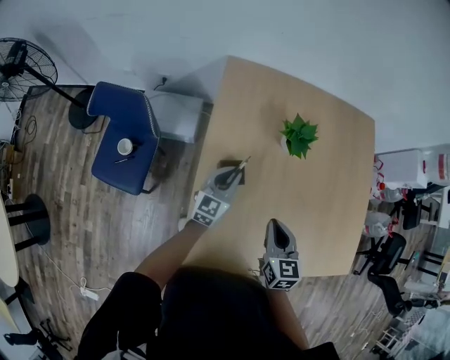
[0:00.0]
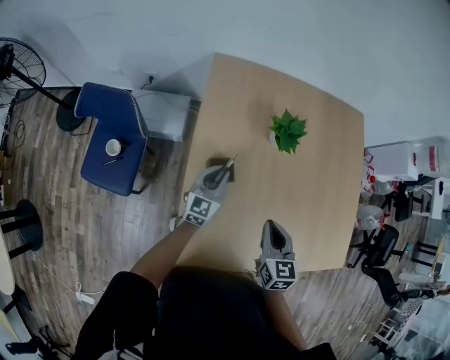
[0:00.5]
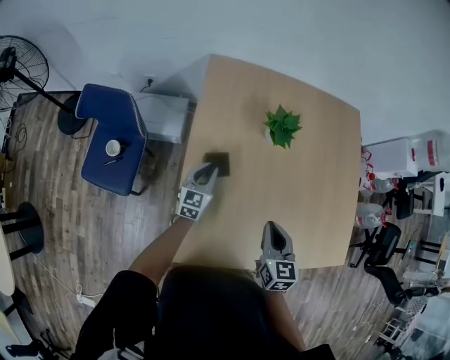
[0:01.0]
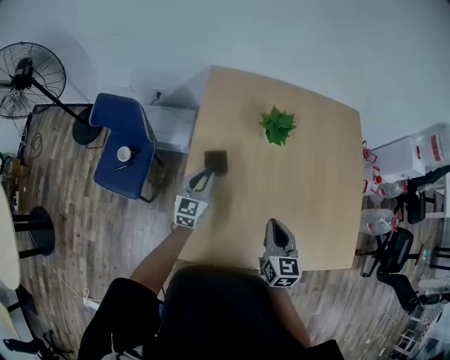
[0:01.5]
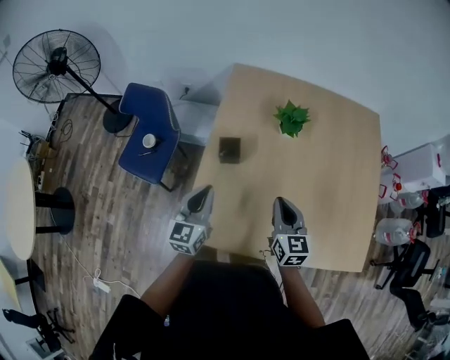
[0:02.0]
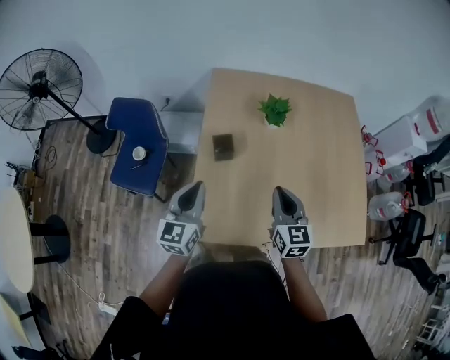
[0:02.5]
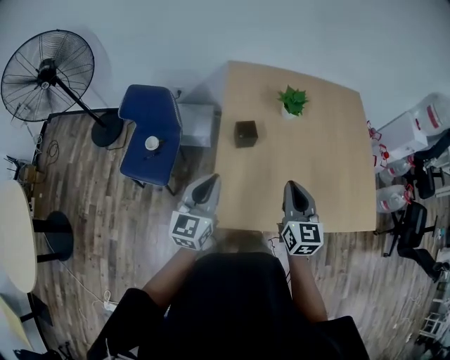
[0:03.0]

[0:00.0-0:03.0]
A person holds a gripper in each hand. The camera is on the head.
0:00.0 to 0:01.5: The right gripper shifts roughly 10 cm to the right and backward. Meanwhile the left gripper shifts approximately 10 cm backward.
0:01.5 to 0:03.0: The right gripper heads backward, to the left and upward, covering about 20 cm, while the left gripper is displaced backward and upward by some 30 cm.

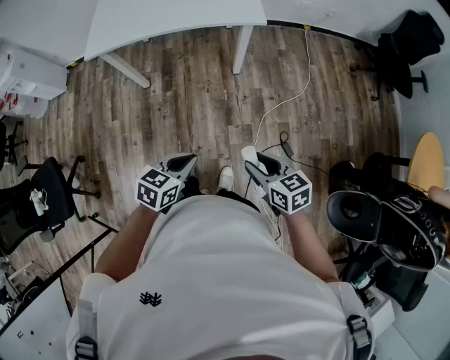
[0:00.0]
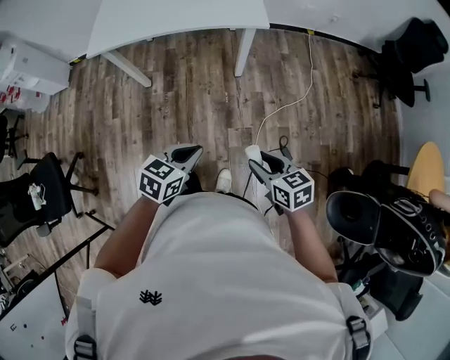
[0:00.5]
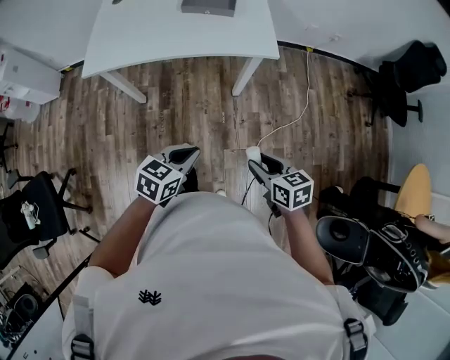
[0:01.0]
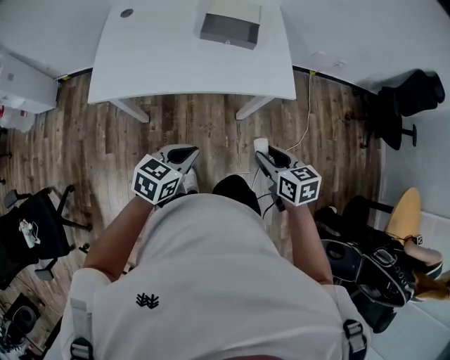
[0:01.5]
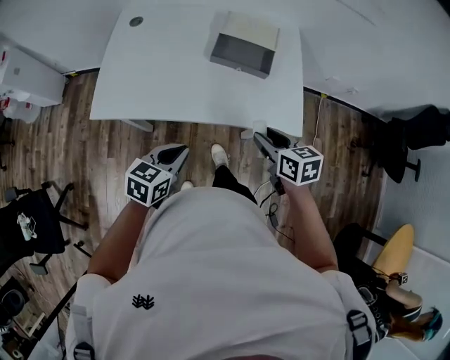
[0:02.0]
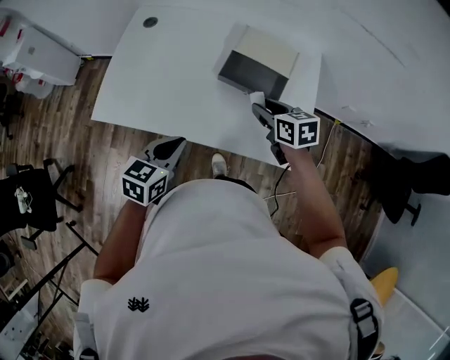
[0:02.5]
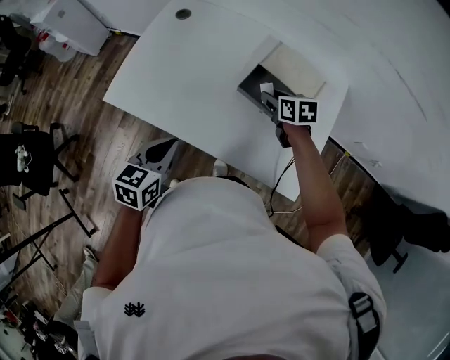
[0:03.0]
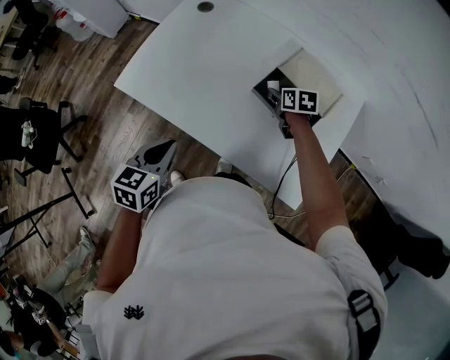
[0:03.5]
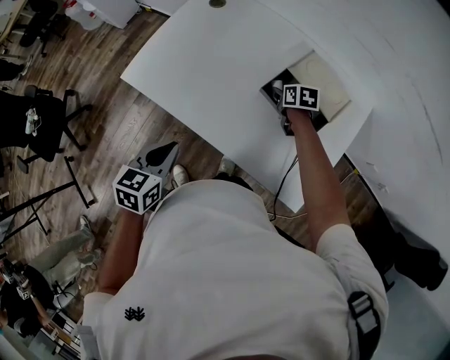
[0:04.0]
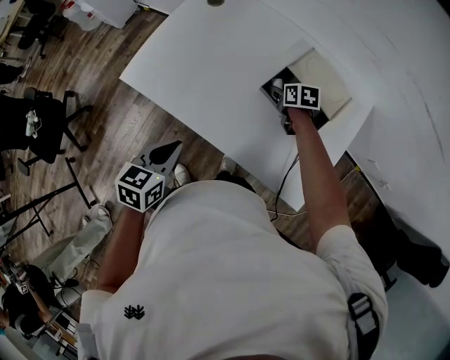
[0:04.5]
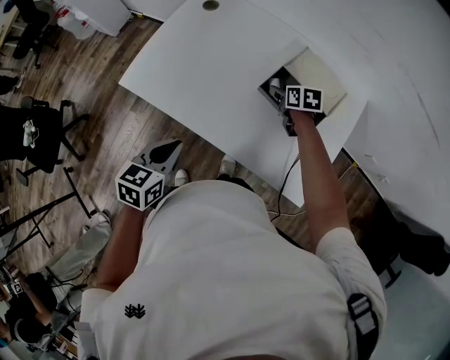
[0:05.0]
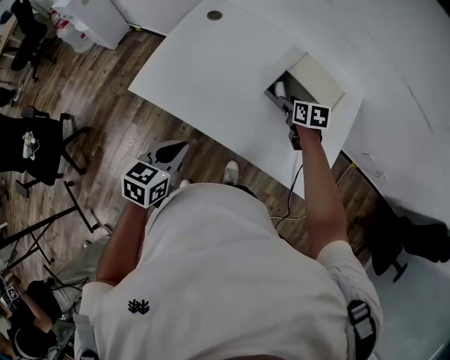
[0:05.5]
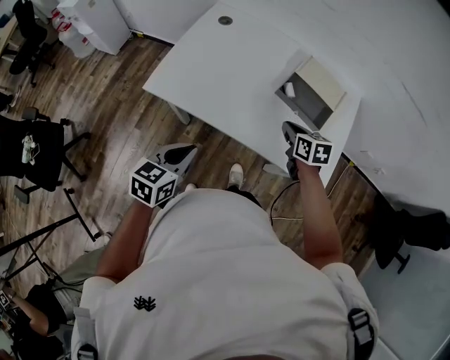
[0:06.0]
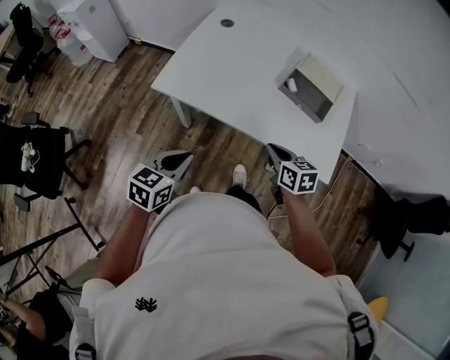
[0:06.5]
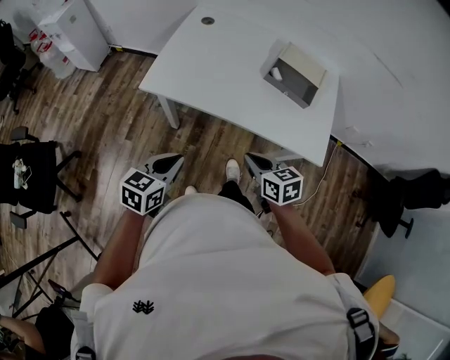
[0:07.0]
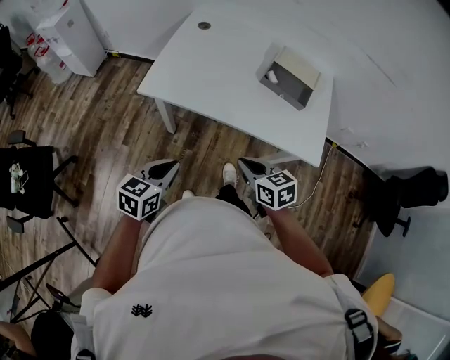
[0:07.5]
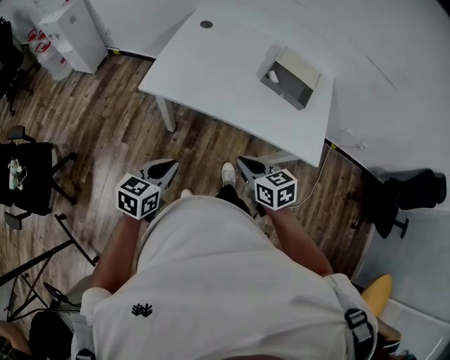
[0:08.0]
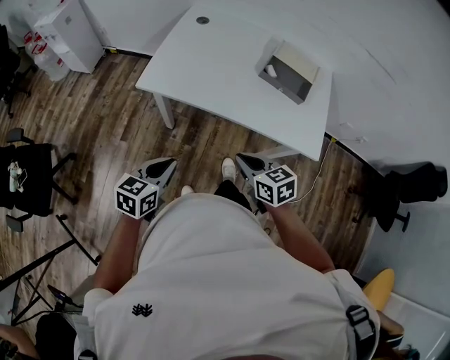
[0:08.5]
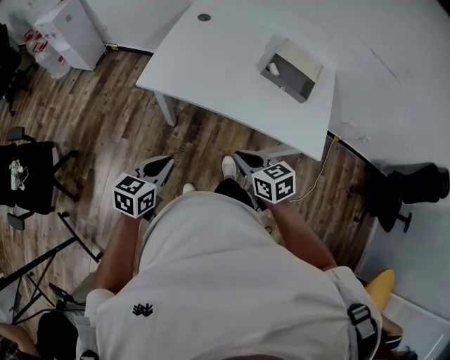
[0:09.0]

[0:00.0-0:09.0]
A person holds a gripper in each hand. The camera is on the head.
0:00.0 to 0:02.0: The pair of grippers is taken forward, roughly 50 cm.
0:02.0 to 0:04.5: The right gripper shifts by some 40 cm, and changes its angle by some 30 degrees. The left gripper changes place by roughly 10 cm, and rotates roughly 40 degrees.
0:04.5 to 0:07.0: The right gripper is displaced backward, to the left and upward by roughly 50 cm, and closes up. The left gripper shifts some 20 cm to the left and backward, and swivels about 20 degrees.
0:07.0 to 0:09.0: The grippers move only a little.

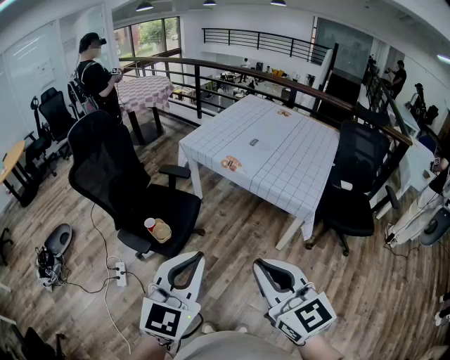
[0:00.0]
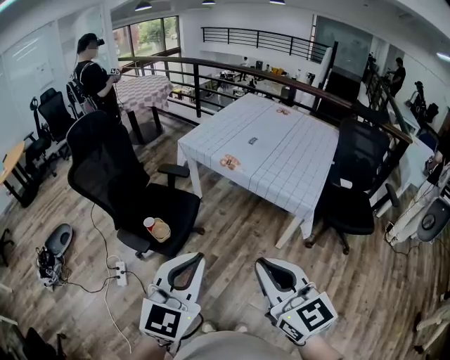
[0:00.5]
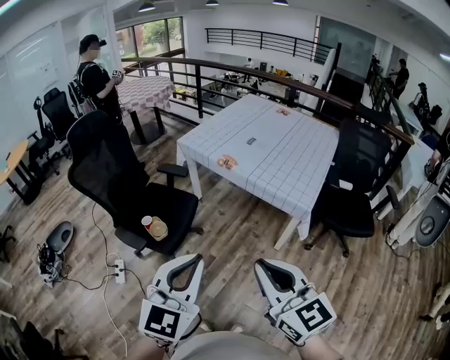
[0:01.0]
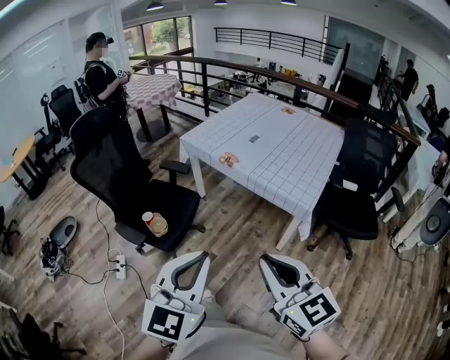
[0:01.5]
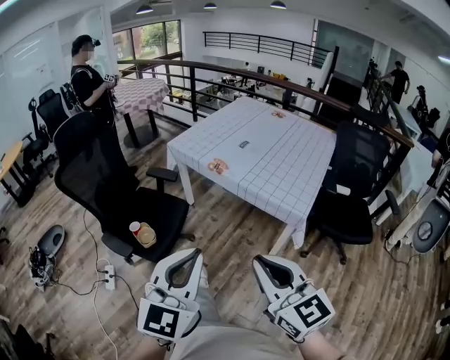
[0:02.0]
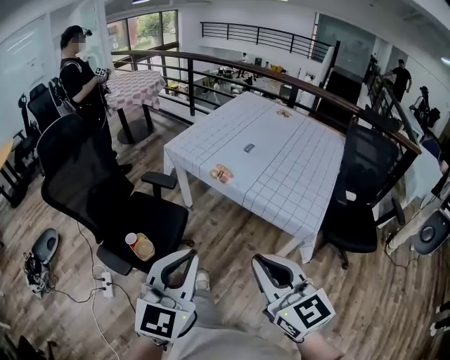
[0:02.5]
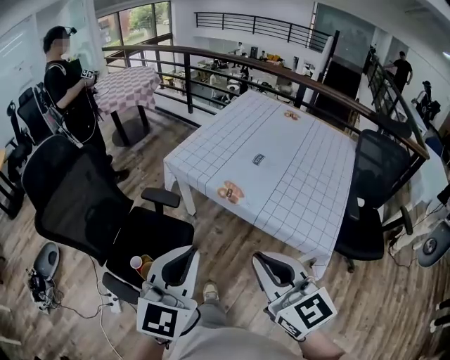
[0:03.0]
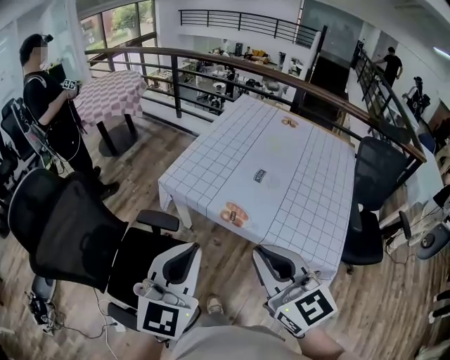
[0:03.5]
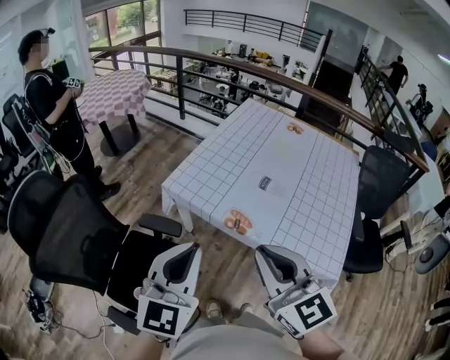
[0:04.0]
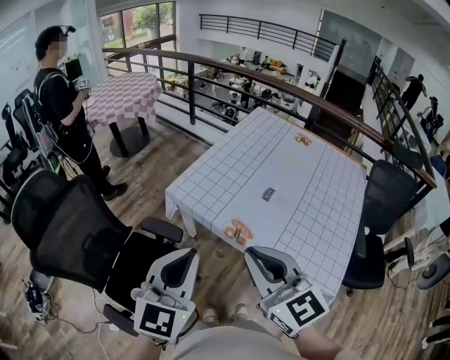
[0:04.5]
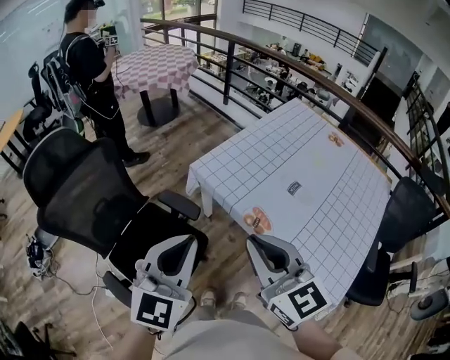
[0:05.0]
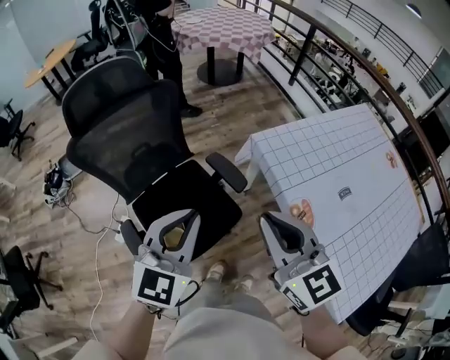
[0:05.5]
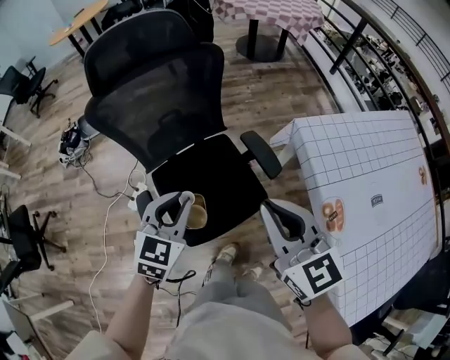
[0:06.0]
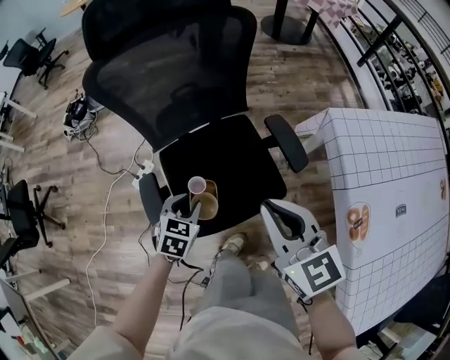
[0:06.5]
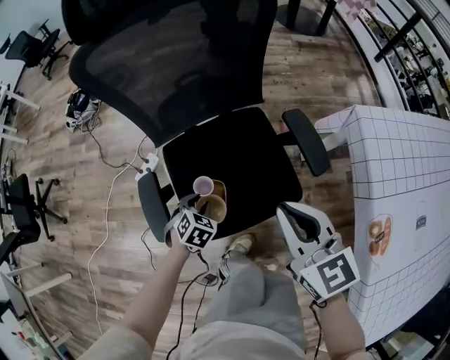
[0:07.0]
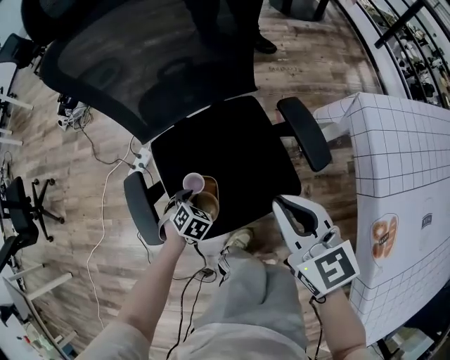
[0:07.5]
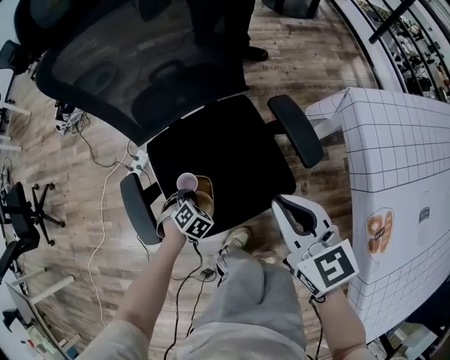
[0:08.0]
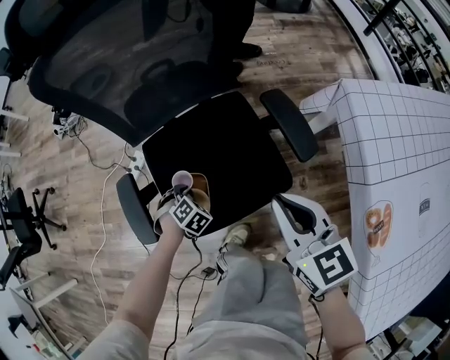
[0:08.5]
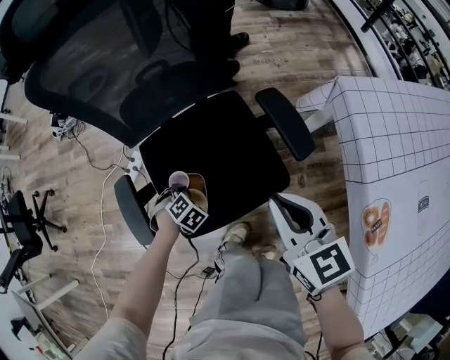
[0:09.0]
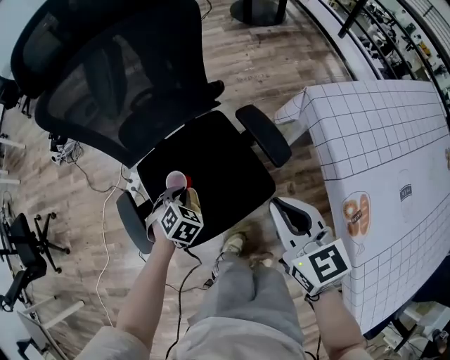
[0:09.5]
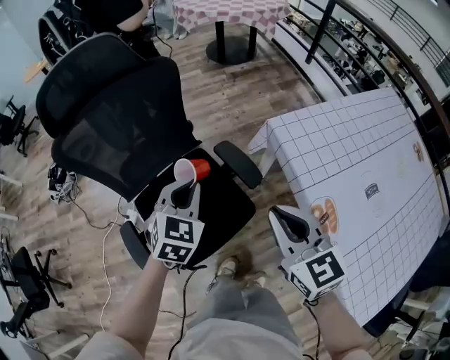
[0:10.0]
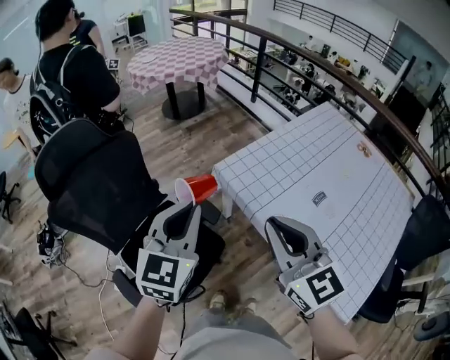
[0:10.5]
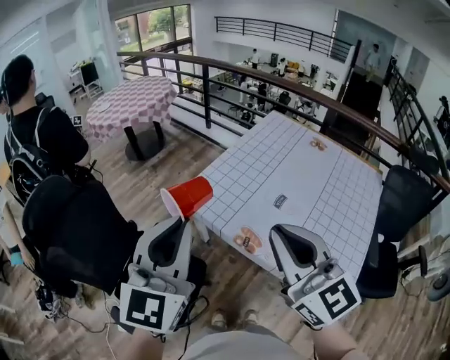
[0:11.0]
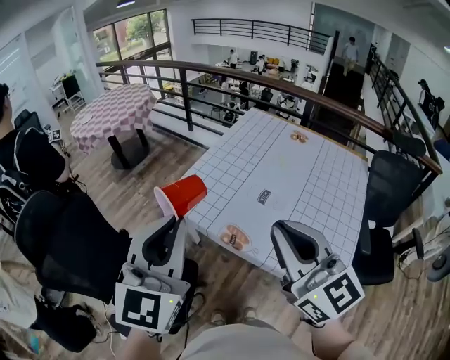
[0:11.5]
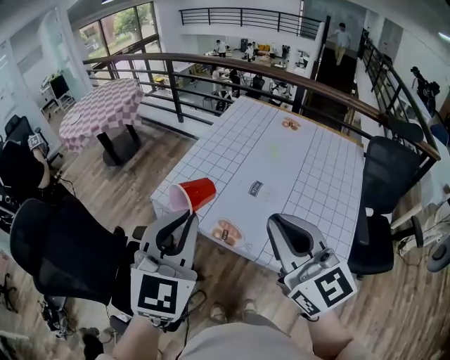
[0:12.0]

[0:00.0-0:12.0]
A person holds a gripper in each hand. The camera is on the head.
0:00.0 to 0:02.0: The left gripper is displaced to the right by roughly 10 cm. The right gripper moves to the right and downward, roughly 10 cm.
0:02.0 to 0:04.0: Both grippers are carried forward, about 50 cm.
0:04.0 to 0:06.0: The right gripper shifts by roughly 30 cm, and changes its angle by roughly 50 degrees; the left gripper changes place by approximately 40 cm, and turns by about 50 degrees.
0:06.0 to 0:08.0: The right gripper shifts about 25 cm downward. The left gripper moves downward, about 40 cm, and points its fingers approximately 40 degrees further downward.
0:08.0 to 0:10.0: The right gripper travels upward by roughly 15 cm. Meanwhile the left gripper goes approximately 35 cm upward, and angles its fingers upward, by about 30 degrees.
0:10.0 to 0:12.0: The right gripper shifts by approximately 25 cm, and swivels some 50 degrees. Meanwhile the left gripper ends up roughly 30 cm from where it was, and angles its fingers upward, by roughly 30 degrees.

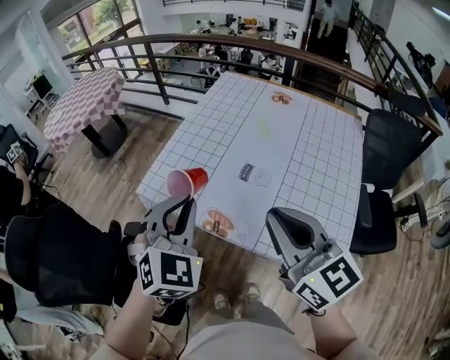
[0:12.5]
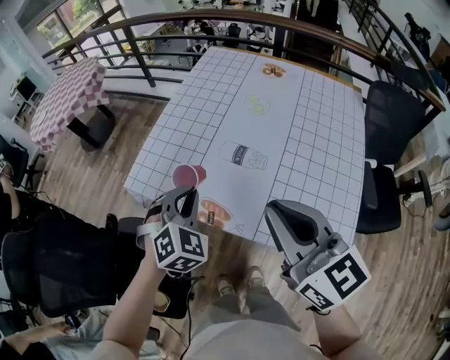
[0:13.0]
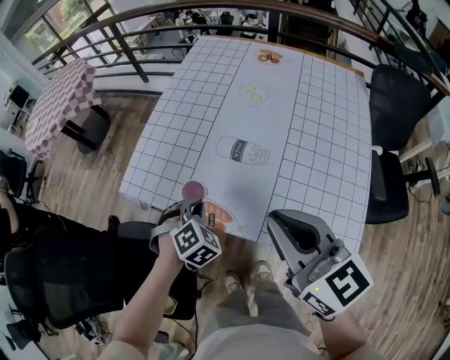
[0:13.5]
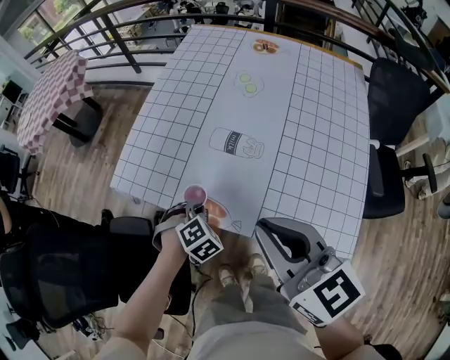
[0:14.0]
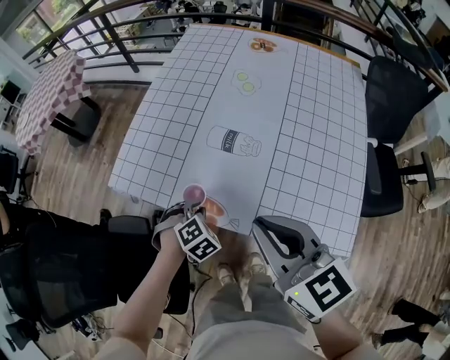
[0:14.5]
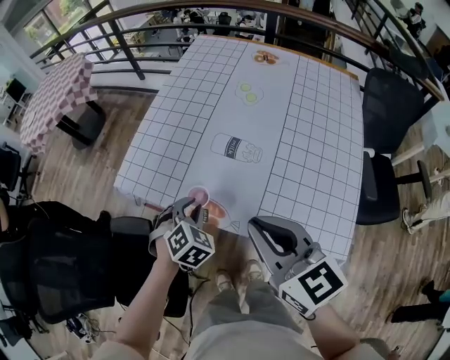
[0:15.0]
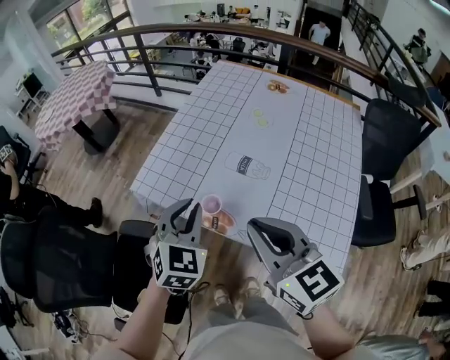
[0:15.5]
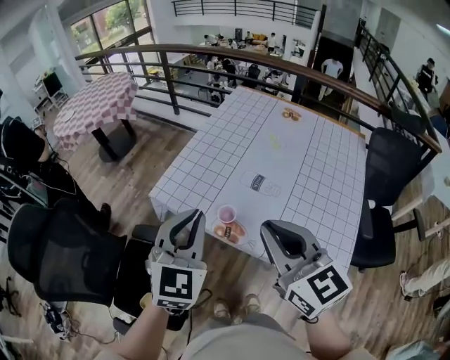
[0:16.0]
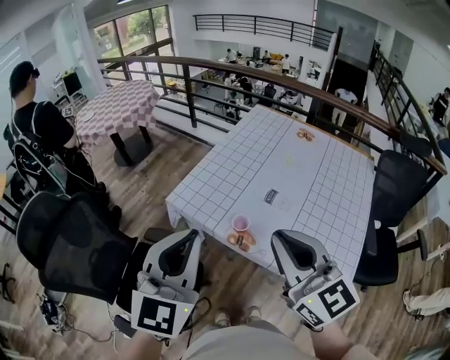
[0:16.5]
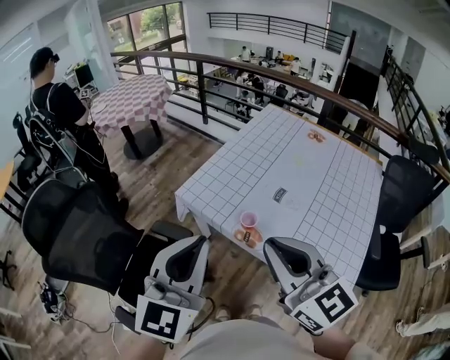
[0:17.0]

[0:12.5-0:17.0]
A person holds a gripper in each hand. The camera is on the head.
0:12.5 to 0:14.5: The left gripper goes roughly 35 cm downward, and tips its fingers downward by approximately 40 degrees; the right gripper heads downward, covering approximately 10 cm.
0:14.5 to 0:17.0: The right gripper goes about 25 cm upward, to the left and backward, and turns by about 30 degrees. The left gripper moves upward and backward, roughly 50 cm, and points its fingers roughly 70 degrees further upward.
